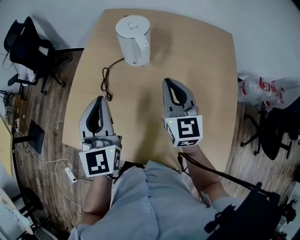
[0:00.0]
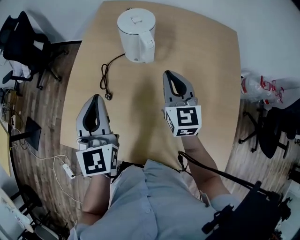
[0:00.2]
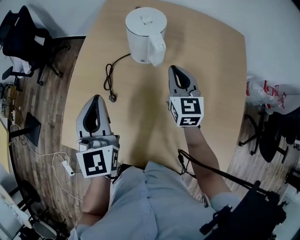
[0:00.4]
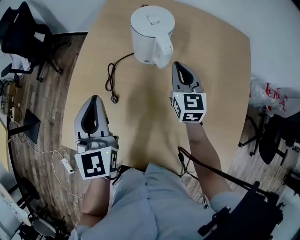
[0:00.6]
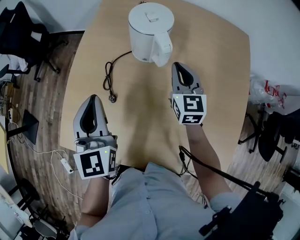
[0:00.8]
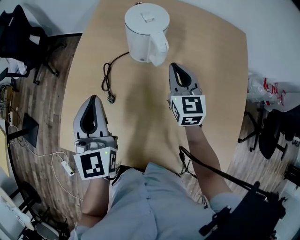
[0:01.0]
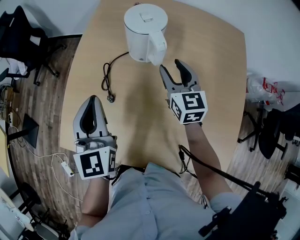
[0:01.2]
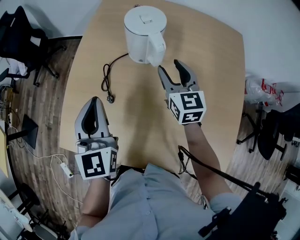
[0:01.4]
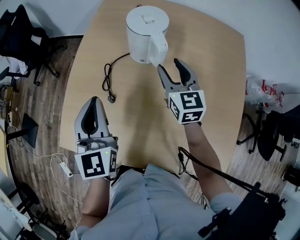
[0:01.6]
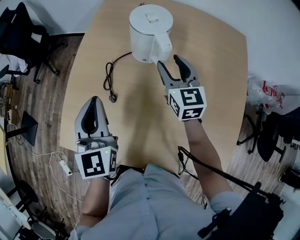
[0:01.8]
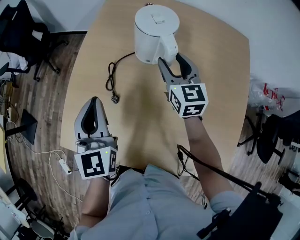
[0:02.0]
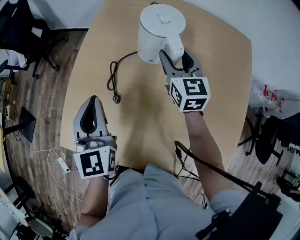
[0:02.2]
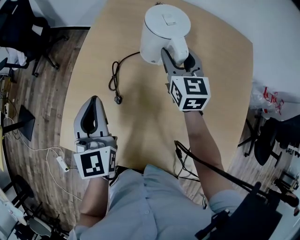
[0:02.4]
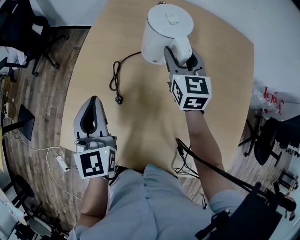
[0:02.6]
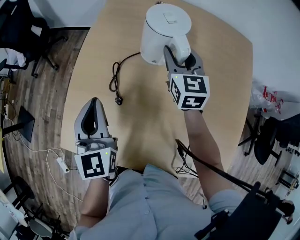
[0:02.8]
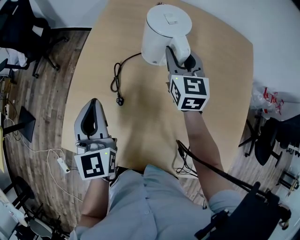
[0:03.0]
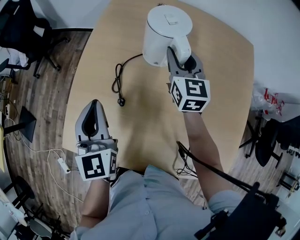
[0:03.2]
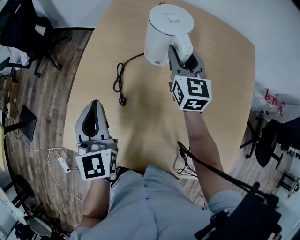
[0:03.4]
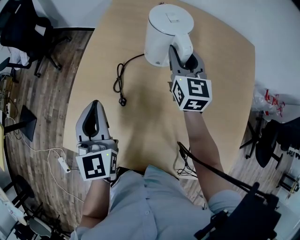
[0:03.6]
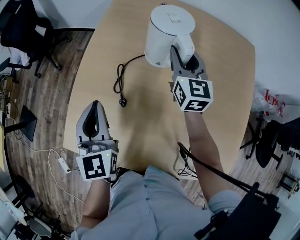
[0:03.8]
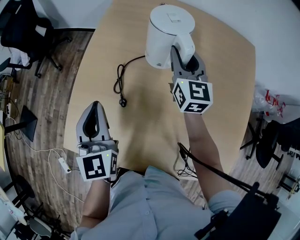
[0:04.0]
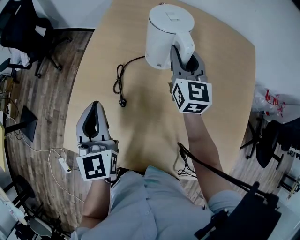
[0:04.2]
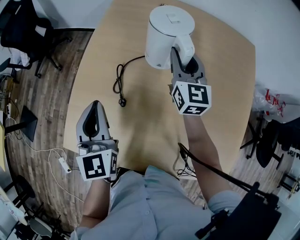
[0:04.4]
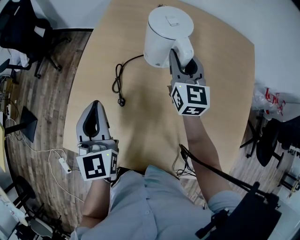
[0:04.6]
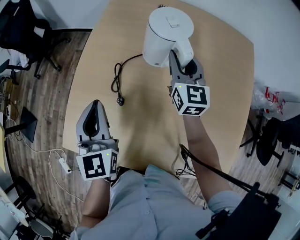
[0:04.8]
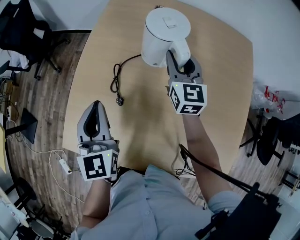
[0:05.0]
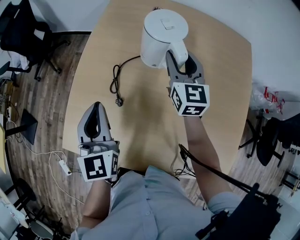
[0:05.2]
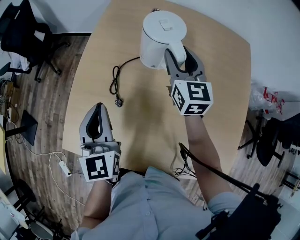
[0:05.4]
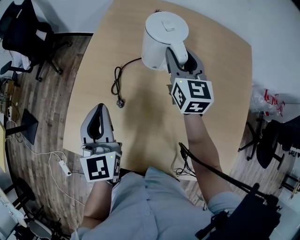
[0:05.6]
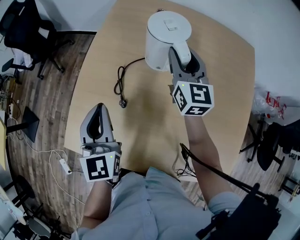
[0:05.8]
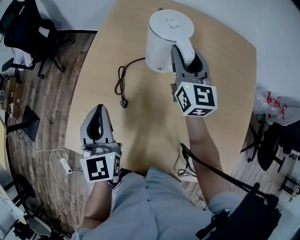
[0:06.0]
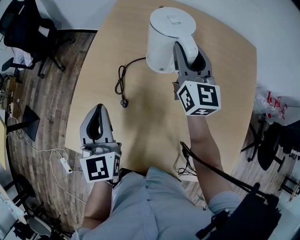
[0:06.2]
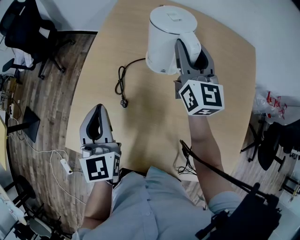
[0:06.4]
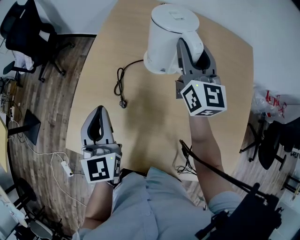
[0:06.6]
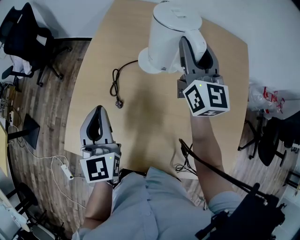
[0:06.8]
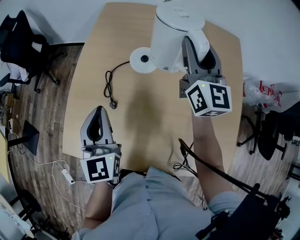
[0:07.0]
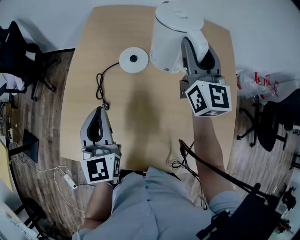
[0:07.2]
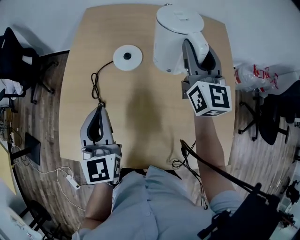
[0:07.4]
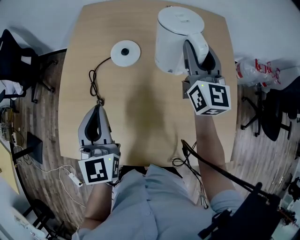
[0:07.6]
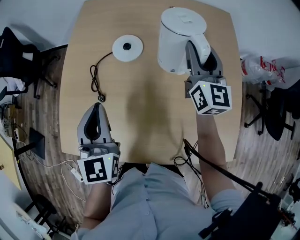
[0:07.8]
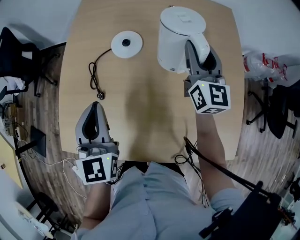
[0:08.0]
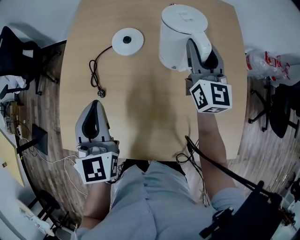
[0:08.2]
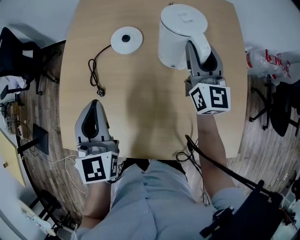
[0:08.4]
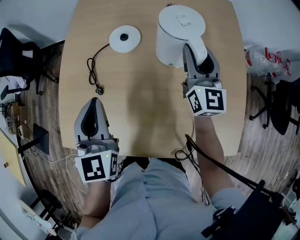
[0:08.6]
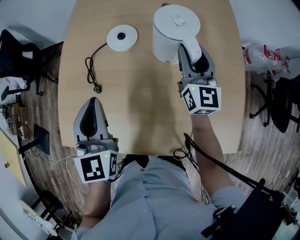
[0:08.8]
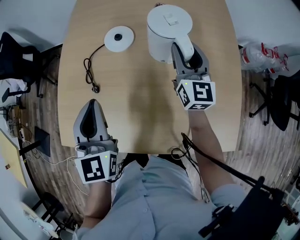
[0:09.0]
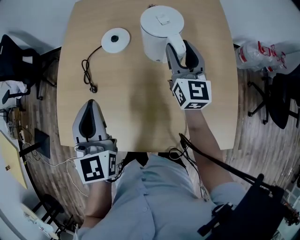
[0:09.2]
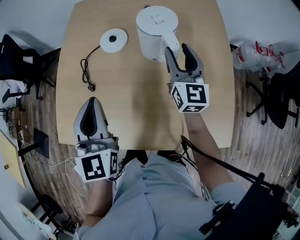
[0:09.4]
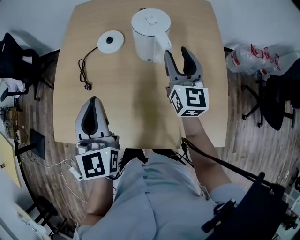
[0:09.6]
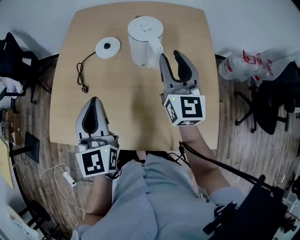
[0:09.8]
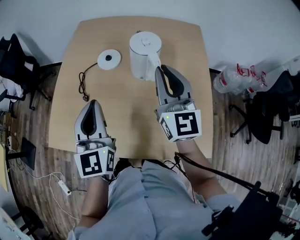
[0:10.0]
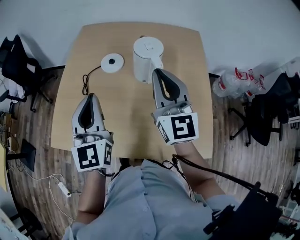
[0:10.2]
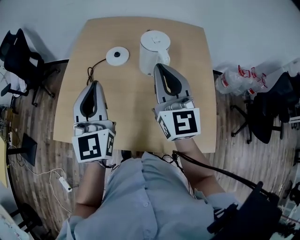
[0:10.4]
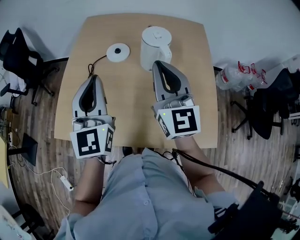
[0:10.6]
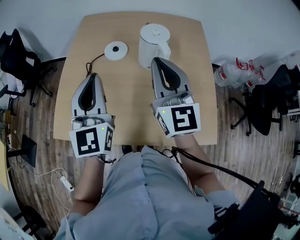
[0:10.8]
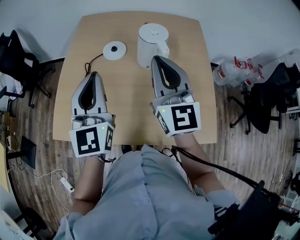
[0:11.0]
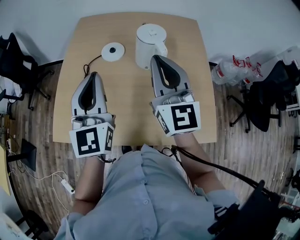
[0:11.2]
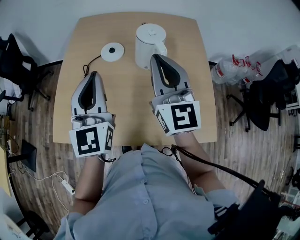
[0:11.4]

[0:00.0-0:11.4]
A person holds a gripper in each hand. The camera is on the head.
0:00.0 to 0:01.4: The left gripper shifts by roughly 5 cm; the right gripper heads forward and downward, covering about 10 cm, and opens.
0:01.4 to 0:02.8: The right gripper moves forward, roughly 10 cm. Meanwhile the left gripper moves some 5 cm.
0:02.8 to 0:05.6: The grippers stay close to where they were, moving slightly.
0:05.6 to 0:07.2: The right gripper travels upward, to the right and backward by about 15 cm, and changes its angle by approximately 20 degrees.
0:07.2 to 0:08.6: The right gripper heads downward and backward, covering roughly 10 cm.
0:08.6 to 0:10.0: The right gripper heads backward and upward, covering roughly 15 cm, and closes its fingers, while the left gripper heads to the right and backward, covering some 10 cm.
0:10.0 to 0:11.4: The left gripper shifts by about 5 cm. Meanwhile the right gripper shifts about 5 cm to the left.

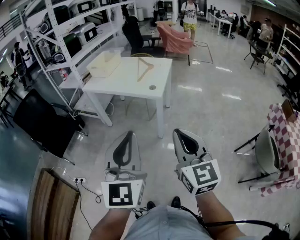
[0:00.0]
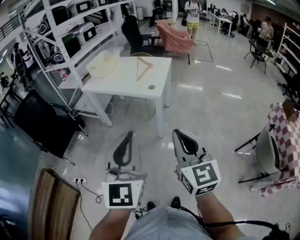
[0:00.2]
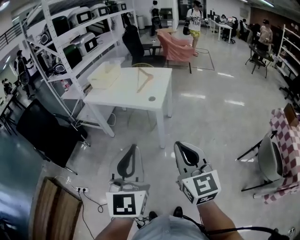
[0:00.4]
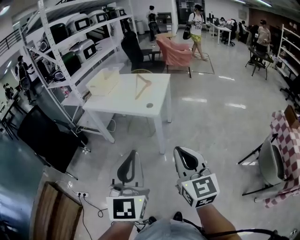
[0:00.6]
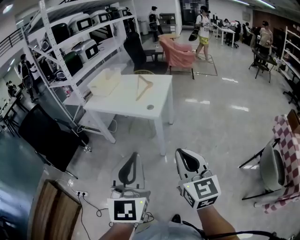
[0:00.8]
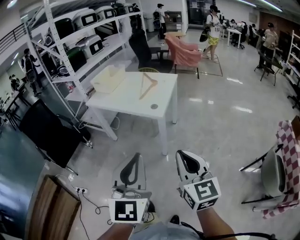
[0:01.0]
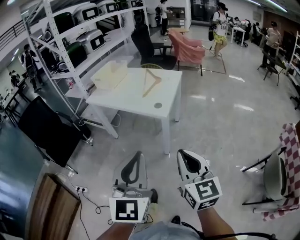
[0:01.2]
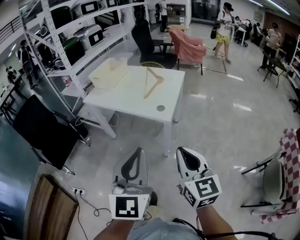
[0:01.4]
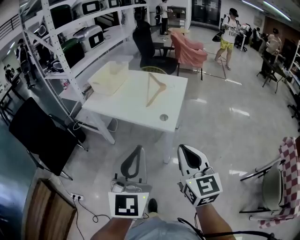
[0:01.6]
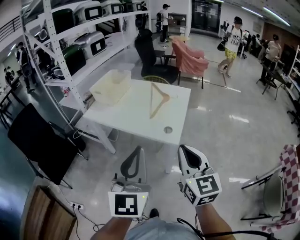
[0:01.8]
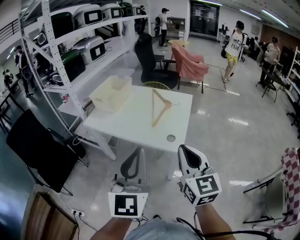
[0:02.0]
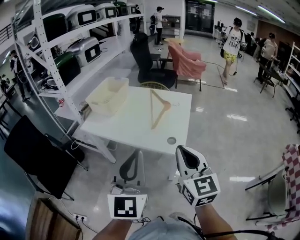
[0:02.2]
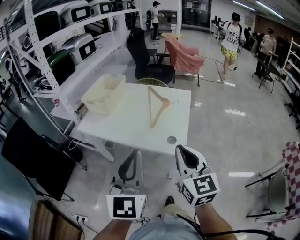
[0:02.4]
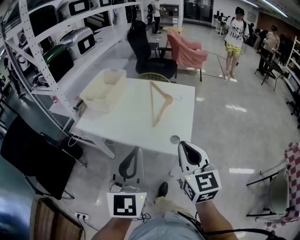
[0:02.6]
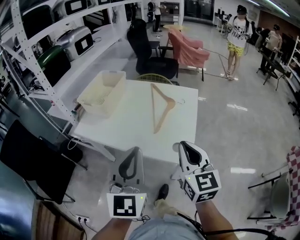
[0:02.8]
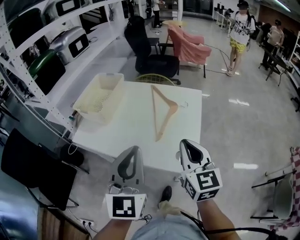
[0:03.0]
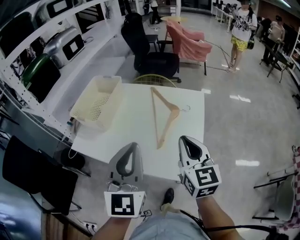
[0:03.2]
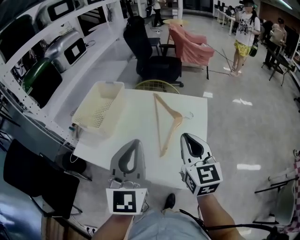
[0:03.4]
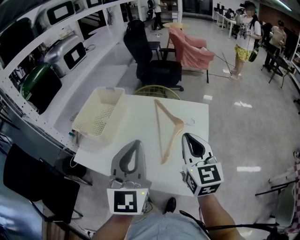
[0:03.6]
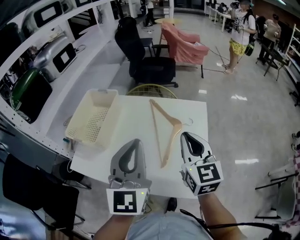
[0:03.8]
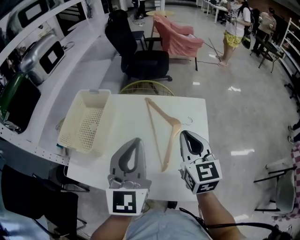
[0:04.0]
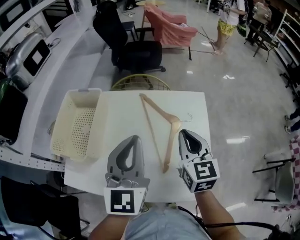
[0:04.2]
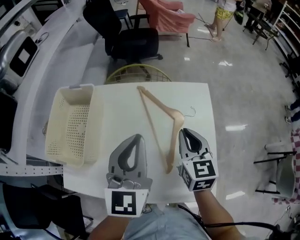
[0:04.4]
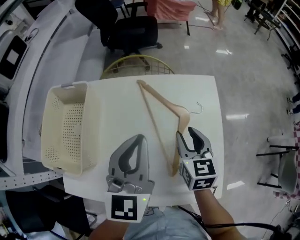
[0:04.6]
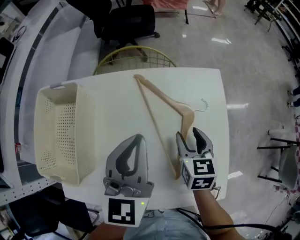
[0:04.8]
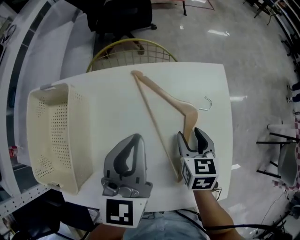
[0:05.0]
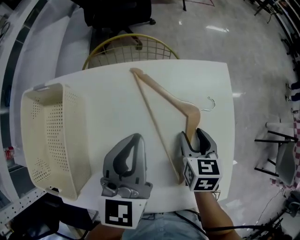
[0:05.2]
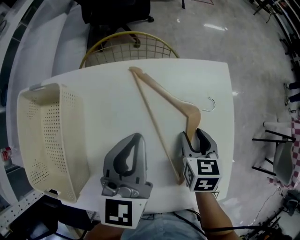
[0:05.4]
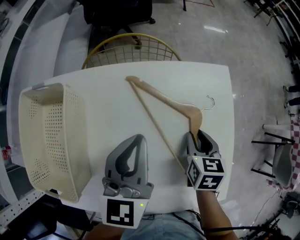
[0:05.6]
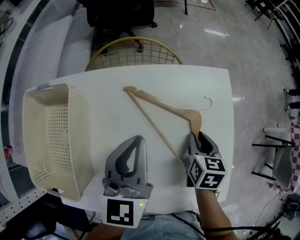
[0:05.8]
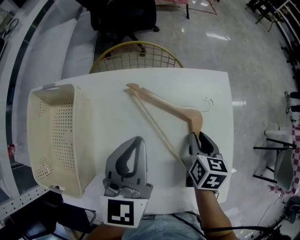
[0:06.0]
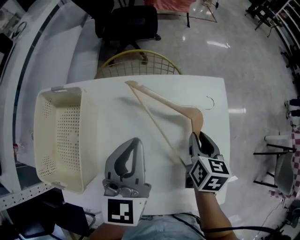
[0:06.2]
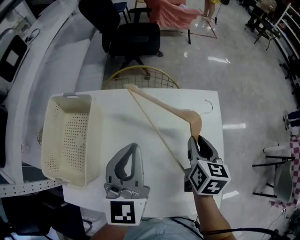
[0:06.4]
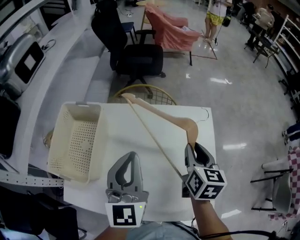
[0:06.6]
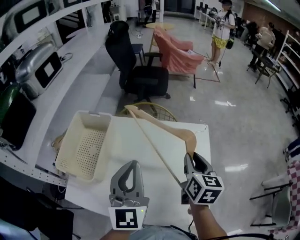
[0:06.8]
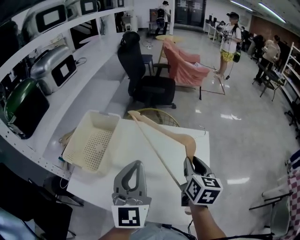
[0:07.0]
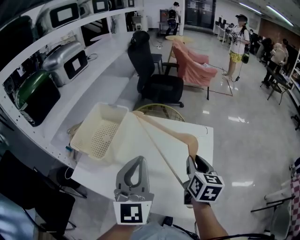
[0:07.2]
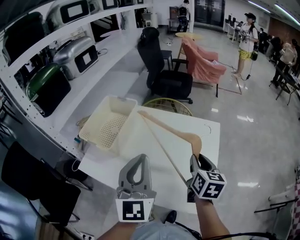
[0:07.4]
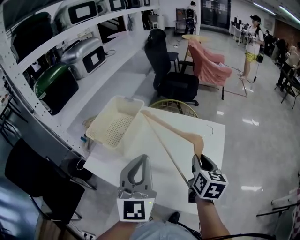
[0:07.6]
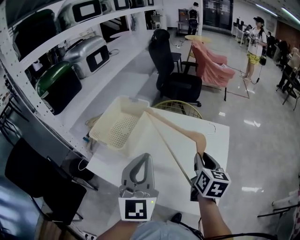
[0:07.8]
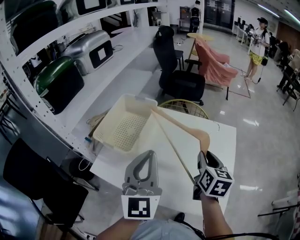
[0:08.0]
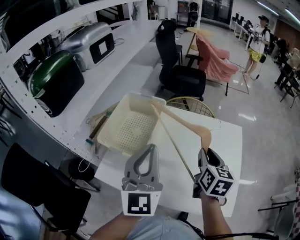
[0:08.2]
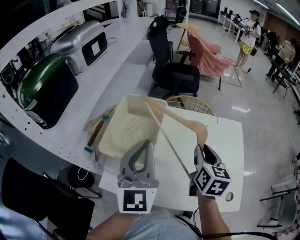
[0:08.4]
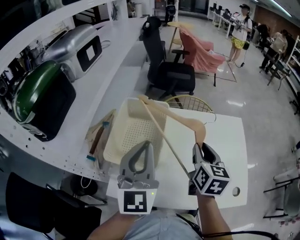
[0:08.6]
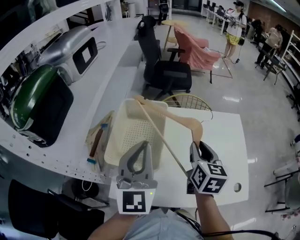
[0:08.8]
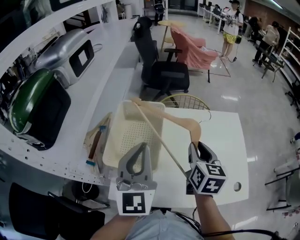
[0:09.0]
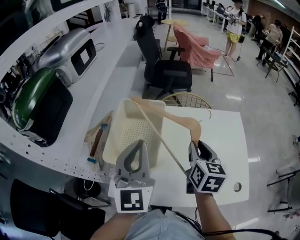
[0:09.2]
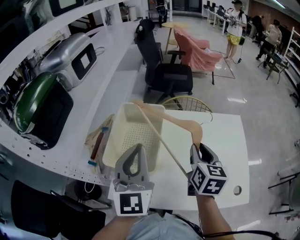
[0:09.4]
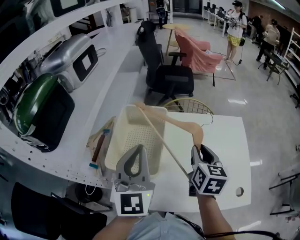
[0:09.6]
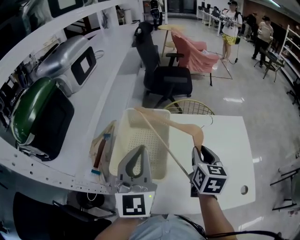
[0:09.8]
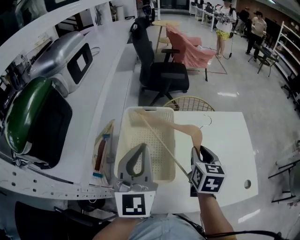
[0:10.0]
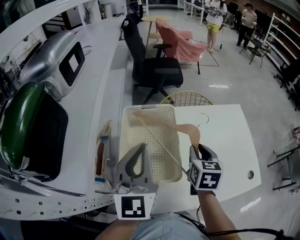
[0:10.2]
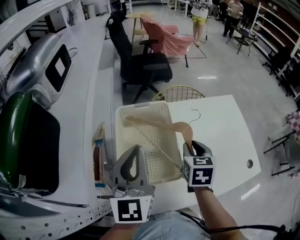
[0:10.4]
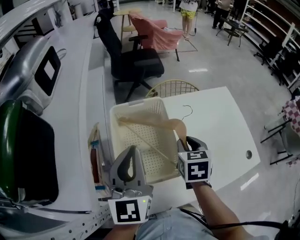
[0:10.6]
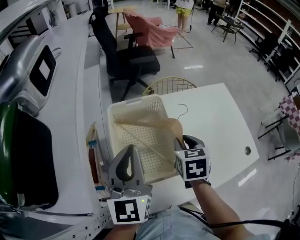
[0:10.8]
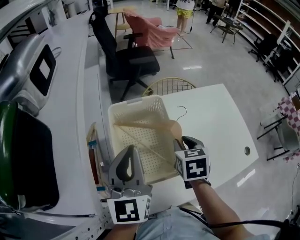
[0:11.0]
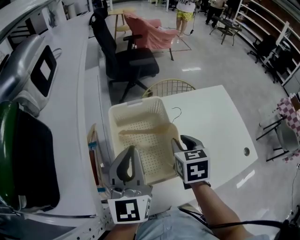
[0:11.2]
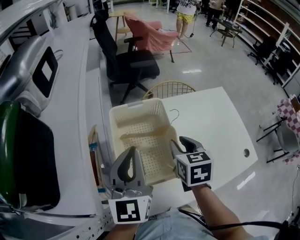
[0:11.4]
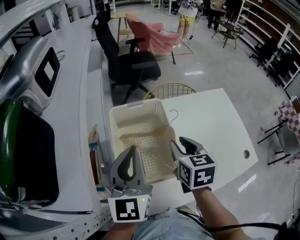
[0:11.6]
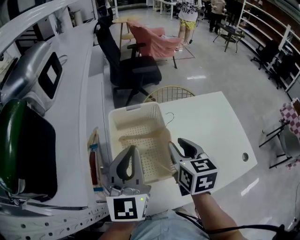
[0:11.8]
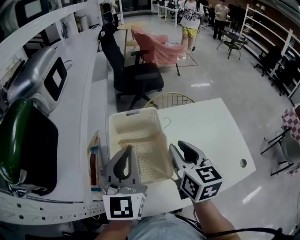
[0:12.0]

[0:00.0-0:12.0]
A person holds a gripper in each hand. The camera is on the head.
0:00.0 to 0:01.6: Both grippers travel together forward, approximately 25 cm.
0:01.6 to 0:03.0: Both grippers move forward, approximately 30 cm.
0:03.0 to 0:04.4: The left gripper moves forward, approximately 30 cm; the right gripper shifts about 30 cm forward and downward, and turns by approximately 20 degrees.
0:04.4 to 0:06.0: The left gripper is displaced downward, forward and to the left by about 15 cm. The right gripper heads downward and forward, covering some 15 cm, swivels some 30 degrees, and opens its fingers.
0:06.0 to 0:07.6: The left gripper moves about 35 cm, and rotates roughly 40 degrees; the right gripper goes some 20 cm upward, and swivels roughly 30 degrees.
0:07.6 to 0:09.0: The right gripper travels to the left by about 25 cm, while the left gripper heads to the left and forward, covering about 25 cm.
0:09.0 to 0:10.4: The left gripper is displaced to the left and forward by about 10 cm. The right gripper moves to the left and downward, about 10 cm, and changes its angle by some 20 degrees.
0:10.4 to 0:12.0: The right gripper moves upward, some 10 cm, and turns by approximately 30 degrees.
